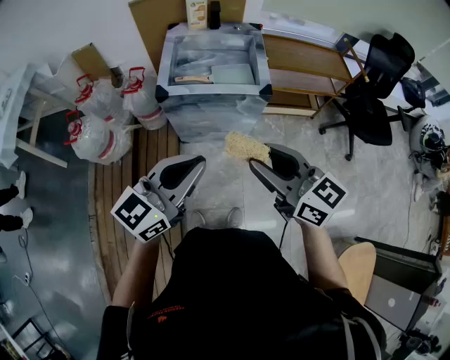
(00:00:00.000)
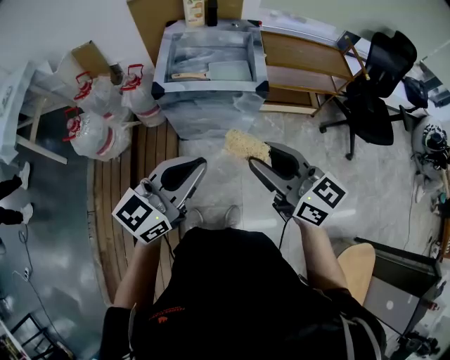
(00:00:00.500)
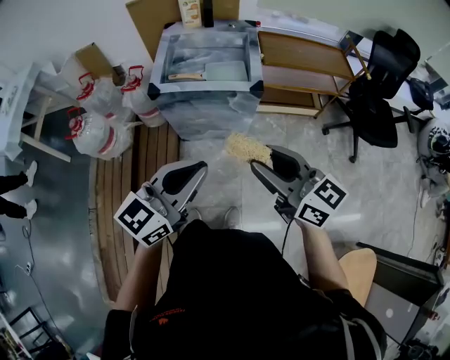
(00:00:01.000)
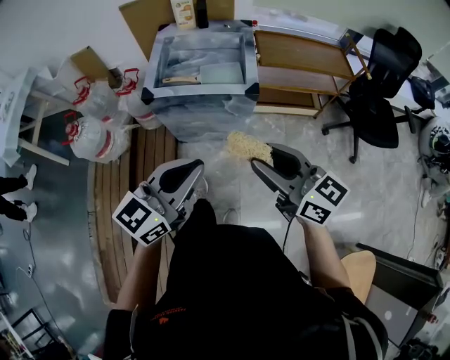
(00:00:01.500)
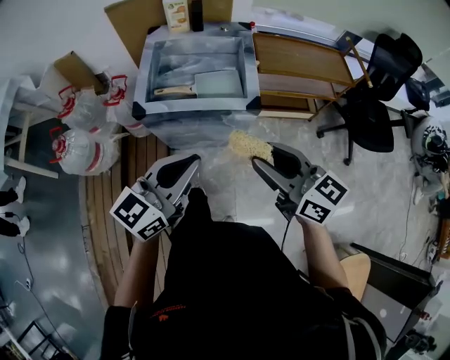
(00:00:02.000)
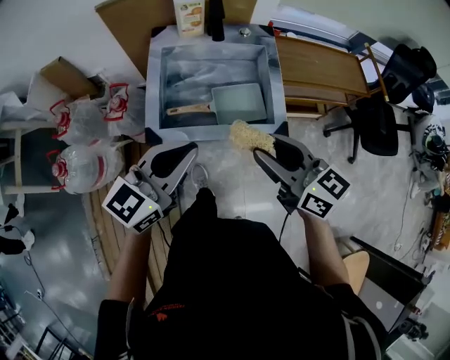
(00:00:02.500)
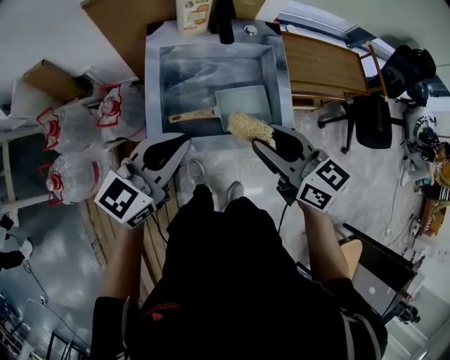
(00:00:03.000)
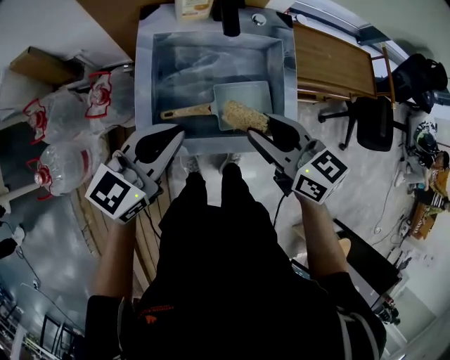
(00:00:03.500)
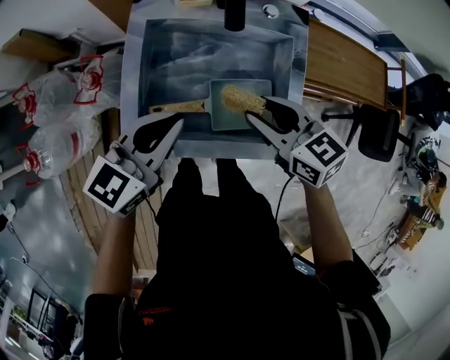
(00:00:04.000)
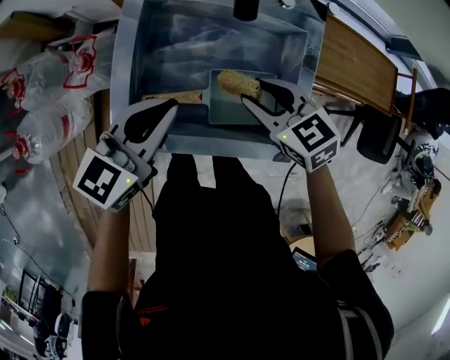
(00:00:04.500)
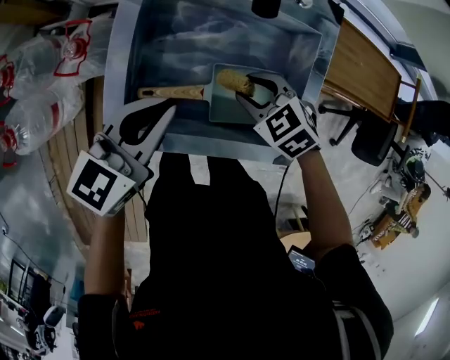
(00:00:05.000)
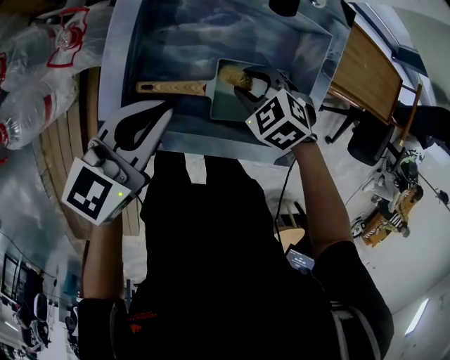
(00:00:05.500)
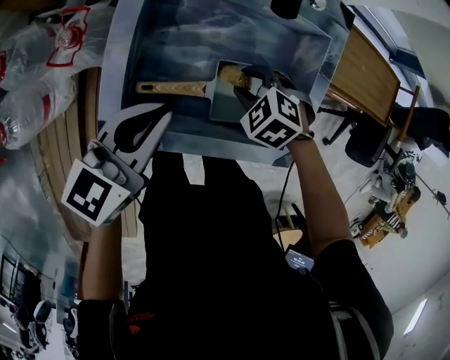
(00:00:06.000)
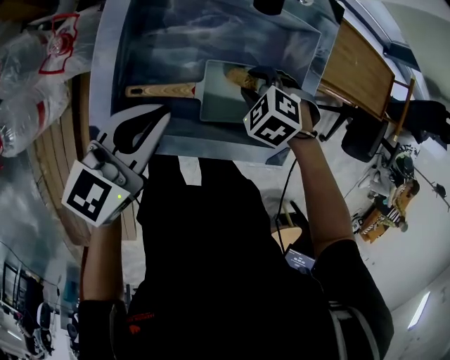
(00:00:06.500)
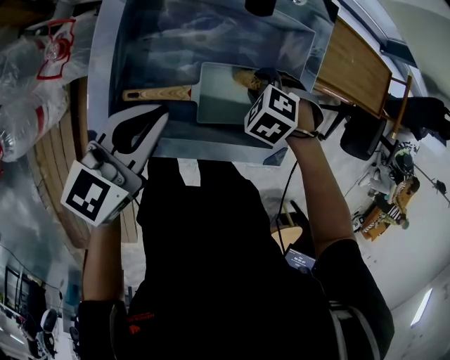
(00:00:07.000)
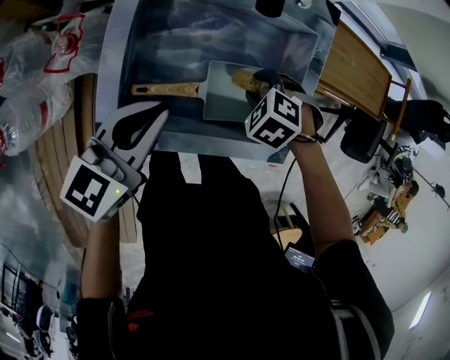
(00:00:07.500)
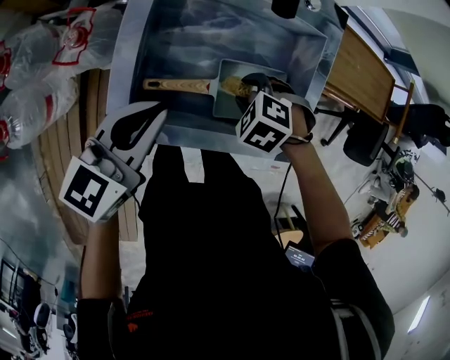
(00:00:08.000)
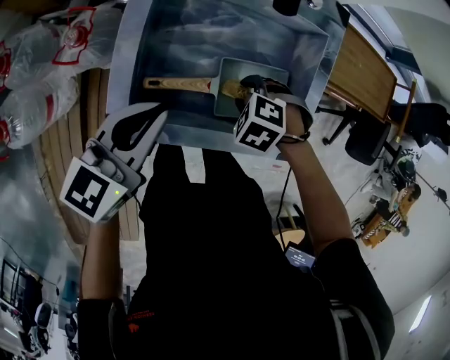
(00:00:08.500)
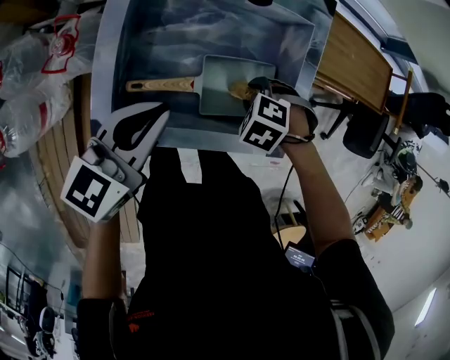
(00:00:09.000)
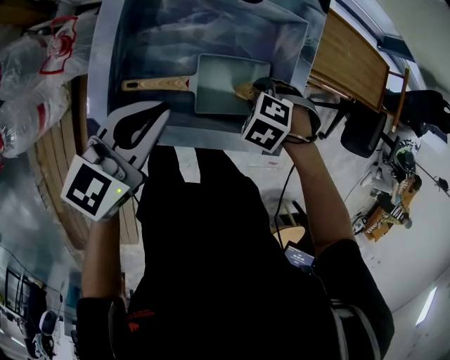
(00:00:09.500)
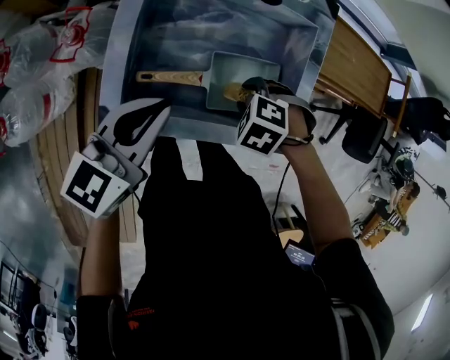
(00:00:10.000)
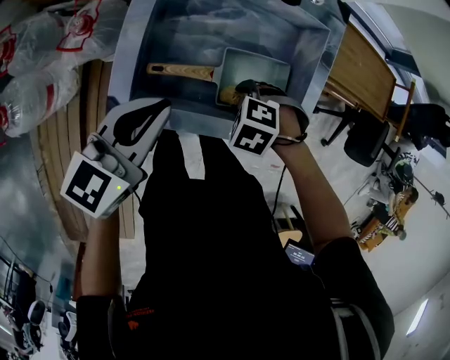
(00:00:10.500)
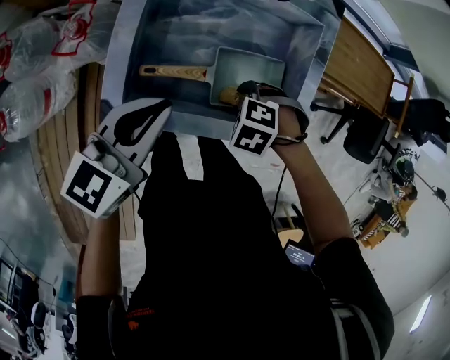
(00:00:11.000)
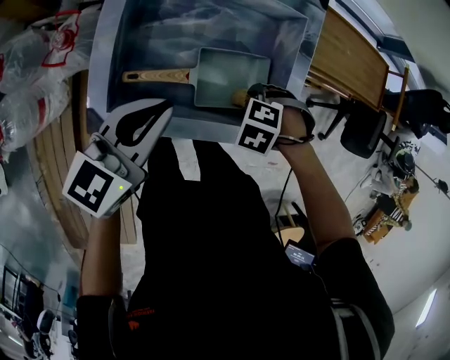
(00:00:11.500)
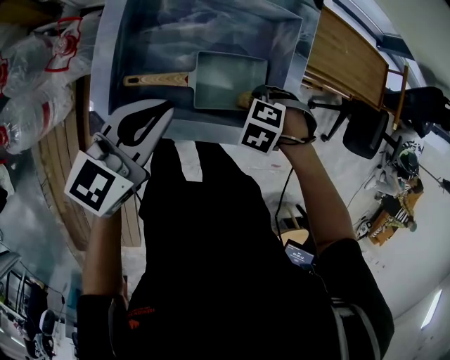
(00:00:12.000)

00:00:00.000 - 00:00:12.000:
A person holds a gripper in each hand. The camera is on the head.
00:00:00.000 - 00:00:02.000: Both grippers move forward and to the right, roughly 15 cm.
00:00:02.000 - 00:00:04.000: The right gripper heads forward and downward, covering roughly 40 cm, and changes its angle by roughly 30 degrees. The left gripper moves forward, approximately 35 cm.
00:00:04.000 - 00:00:06.000: The right gripper moves downward, about 20 cm, and tips its fingers downward by roughly 40 degrees. The left gripper shifts about 5 cm downward.
00:00:10.000 - 00:00:12.000: The right gripper ends up about 10 cm from where it was.

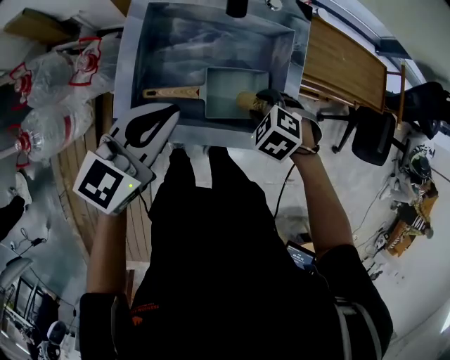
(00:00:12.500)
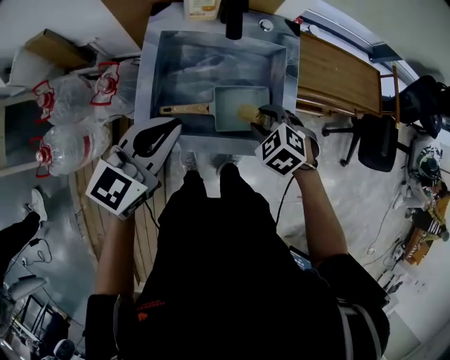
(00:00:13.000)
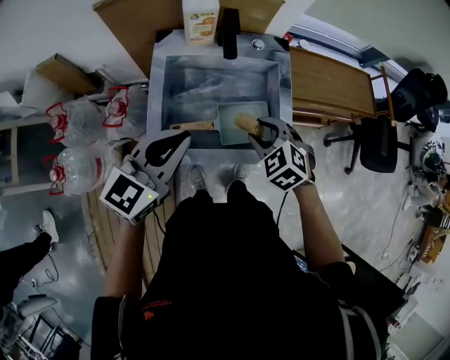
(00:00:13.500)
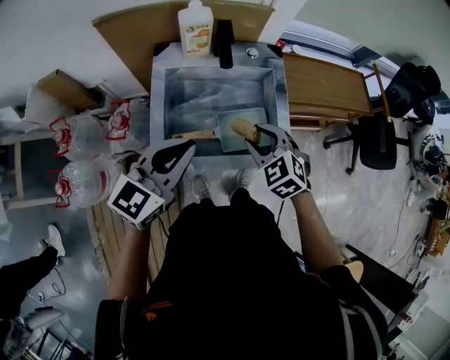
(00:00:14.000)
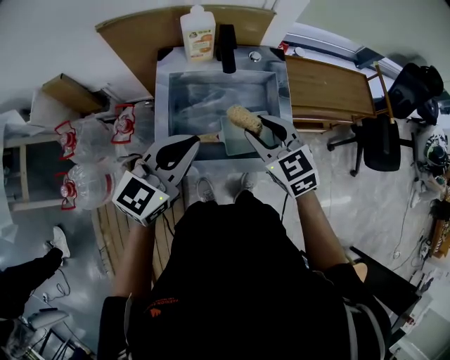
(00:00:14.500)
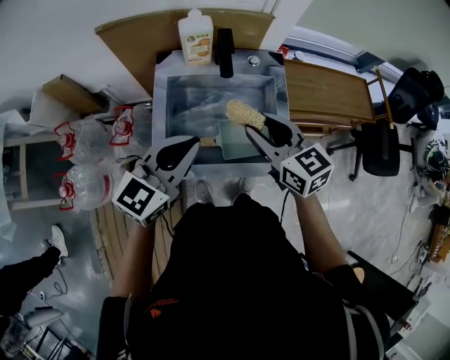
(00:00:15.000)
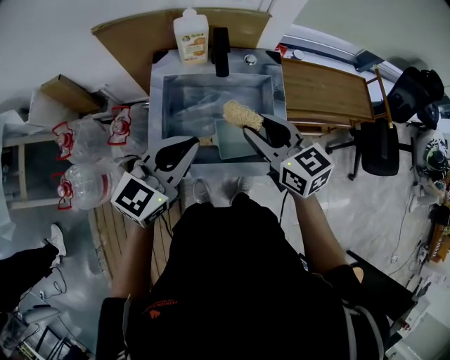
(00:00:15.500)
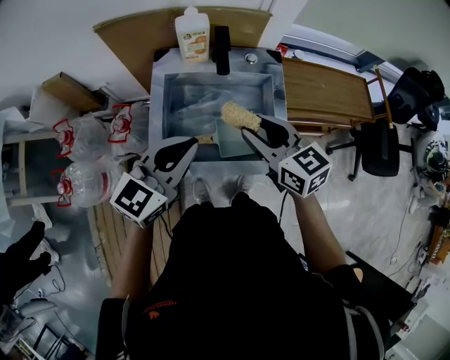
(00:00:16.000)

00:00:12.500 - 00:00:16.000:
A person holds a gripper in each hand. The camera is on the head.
00:00:12.500 - 00:00:14.500: The left gripper heads upward, covering about 10 cm; the right gripper goes about 20 cm upward, and points its fingers roughly 50 degrees further upward.
00:00:14.500 - 00:00:16.000: The right gripper rotates roughly 20 degrees.

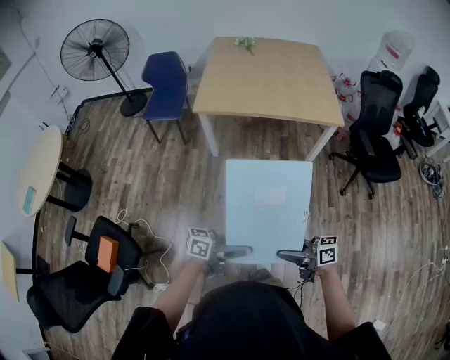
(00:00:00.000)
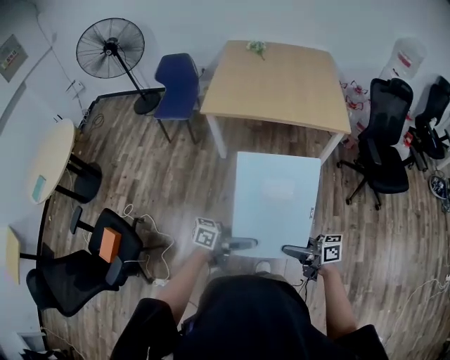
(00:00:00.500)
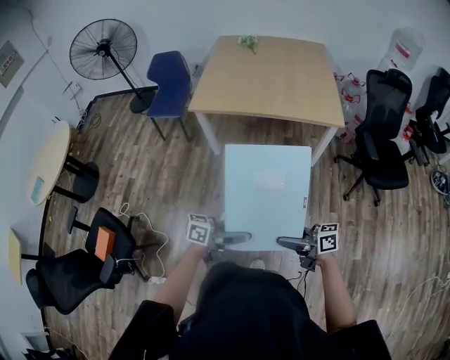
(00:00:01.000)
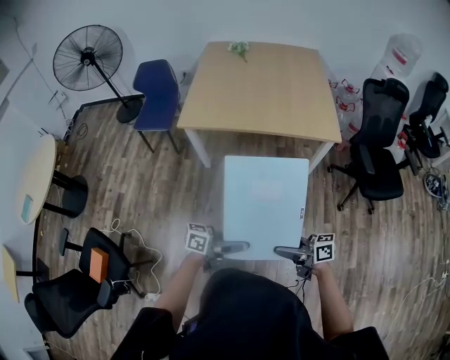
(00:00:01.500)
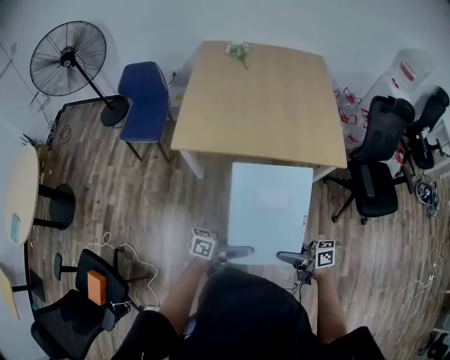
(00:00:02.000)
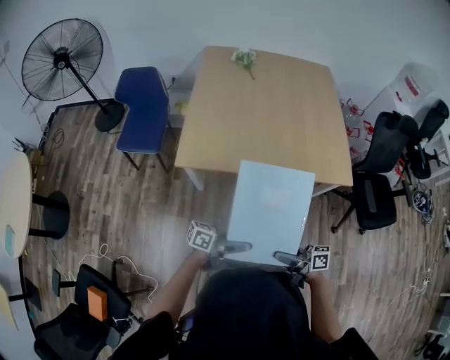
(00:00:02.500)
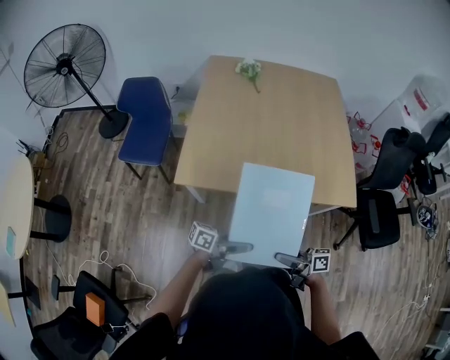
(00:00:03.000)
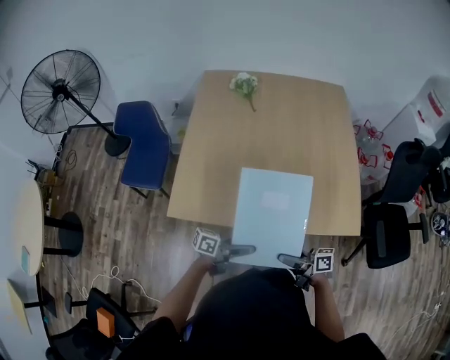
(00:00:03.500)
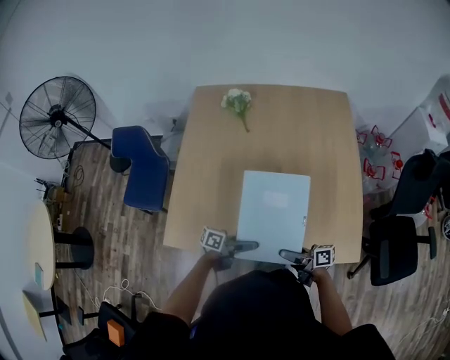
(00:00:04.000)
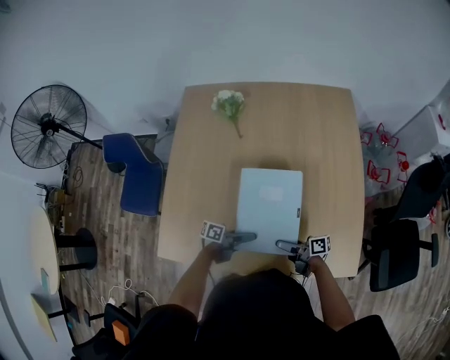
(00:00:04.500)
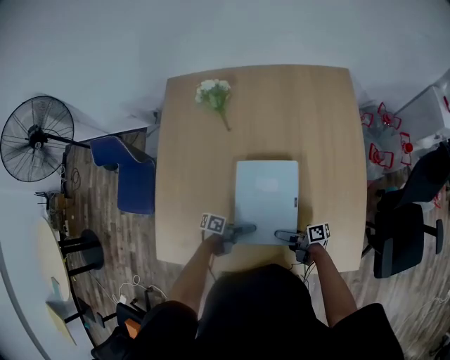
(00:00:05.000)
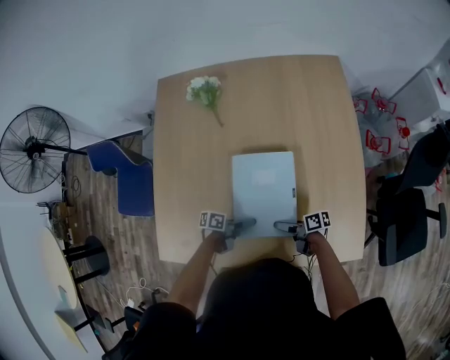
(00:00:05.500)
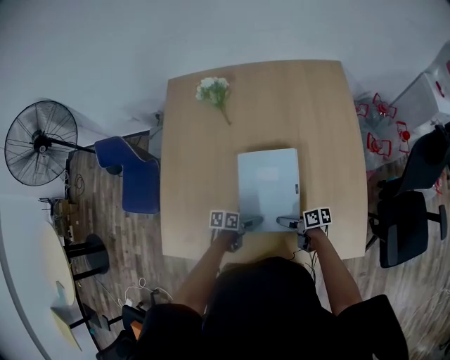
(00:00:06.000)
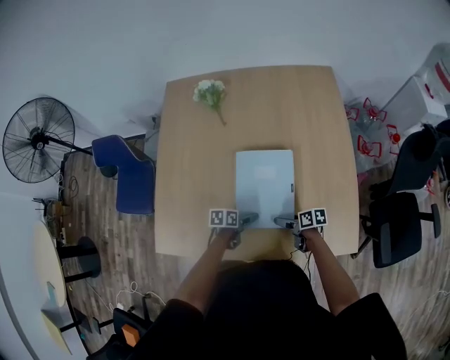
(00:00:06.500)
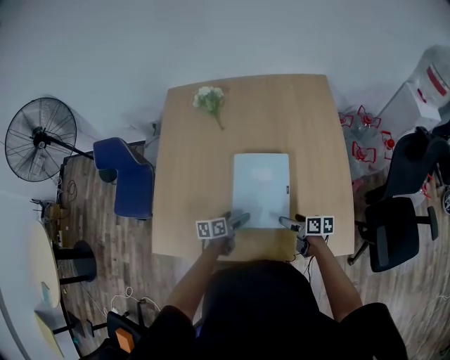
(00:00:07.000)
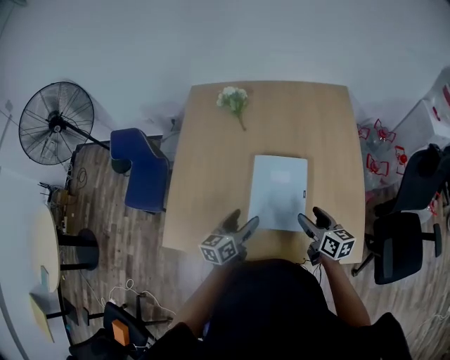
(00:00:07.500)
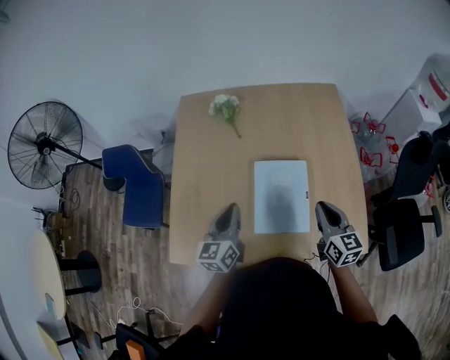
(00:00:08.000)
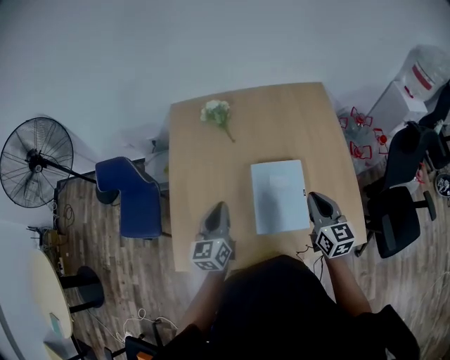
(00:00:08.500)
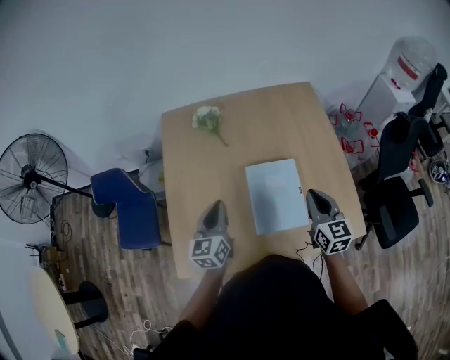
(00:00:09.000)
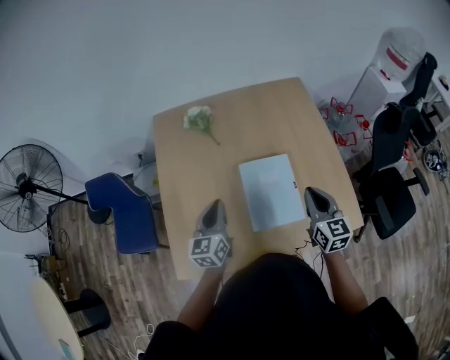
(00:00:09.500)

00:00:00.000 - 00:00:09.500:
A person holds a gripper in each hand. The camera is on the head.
00:00:00.000 - 00:00:02.000: The right gripper moves about 35 cm; the left gripper changes place by roughly 40 cm.
00:00:02.000 - 00:00:04.000: Both grippers are carried approximately 60 cm.
00:00:04.000 - 00:00:05.500: The left gripper ends up some 25 cm from where it was, and rotates about 30 degrees. The right gripper changes place by roughly 25 cm, and changes its angle by approximately 20 degrees.
00:00:05.500 - 00:00:07.500: Both grippers move upward, some 20 cm. The right gripper changes its angle by approximately 50 degrees, while the left gripper turns by approximately 60 degrees.
00:00:07.500 - 00:00:09.500: The right gripper moves upward and to the left, some 15 cm, turns by about 40 degrees, and closes up. Meanwhile the left gripper is displaced to the left, upward and forward by about 20 cm, and closes up.

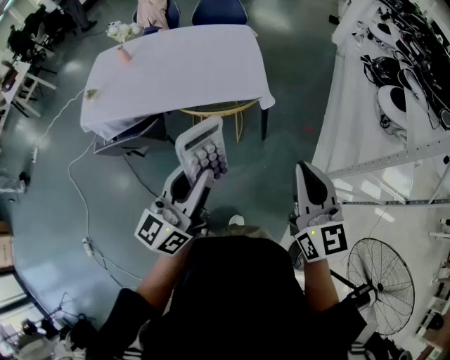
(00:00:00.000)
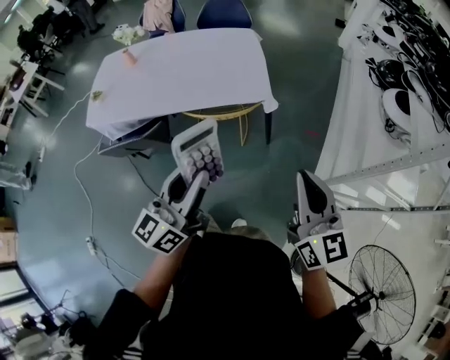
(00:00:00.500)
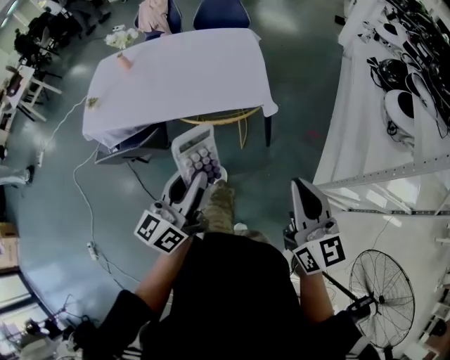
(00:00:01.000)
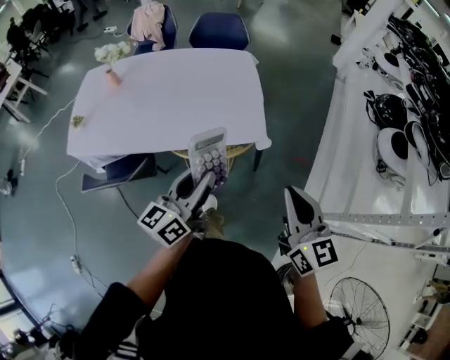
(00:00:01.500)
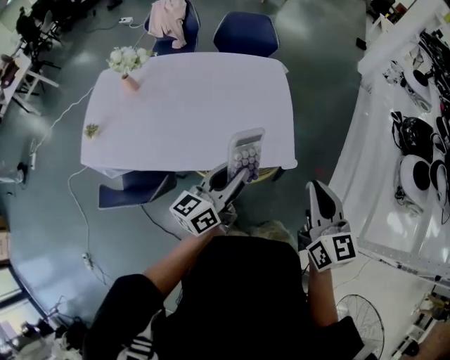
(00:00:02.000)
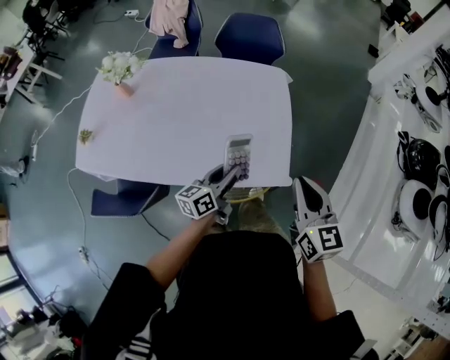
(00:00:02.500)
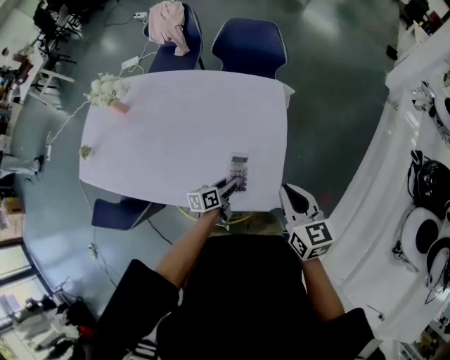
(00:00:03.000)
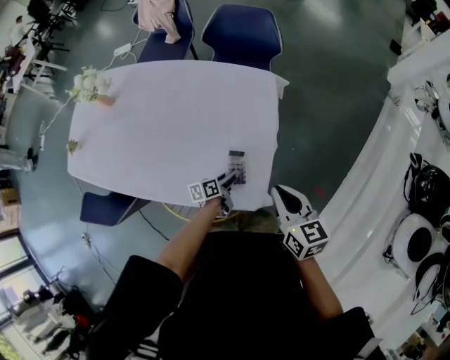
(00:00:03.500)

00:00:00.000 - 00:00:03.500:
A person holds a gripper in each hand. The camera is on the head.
00:00:00.000 - 00:00:02.000: The two grippers go approximately 35 cm forward.
00:00:02.000 - 00:00:03.500: The left gripper goes approximately 40 cm downward and forward, and angles its fingers downward, by about 30 degrees. Meanwhile the right gripper shifts approximately 30 cm forward and downward, and swivels about 30 degrees.
